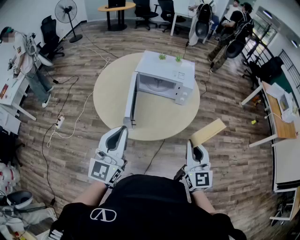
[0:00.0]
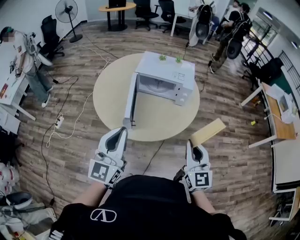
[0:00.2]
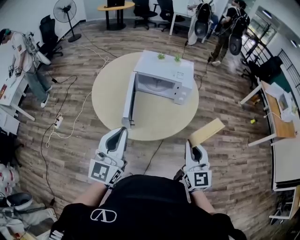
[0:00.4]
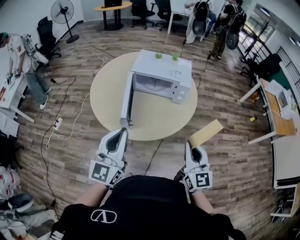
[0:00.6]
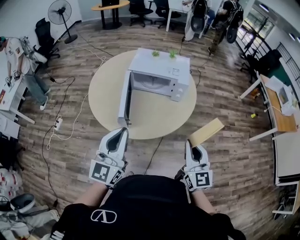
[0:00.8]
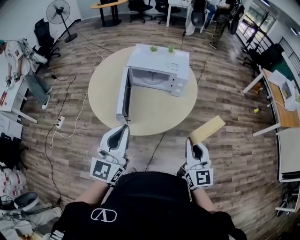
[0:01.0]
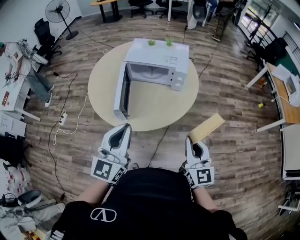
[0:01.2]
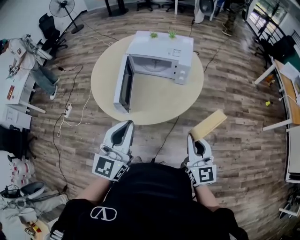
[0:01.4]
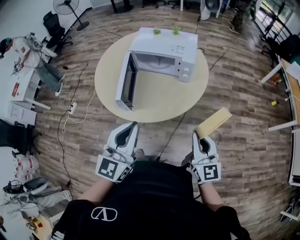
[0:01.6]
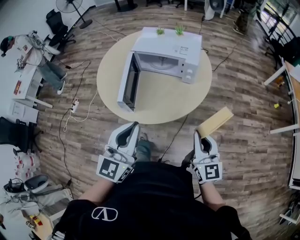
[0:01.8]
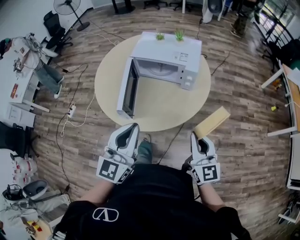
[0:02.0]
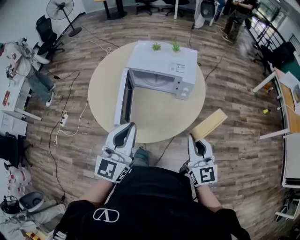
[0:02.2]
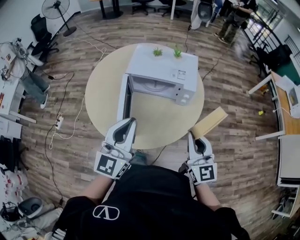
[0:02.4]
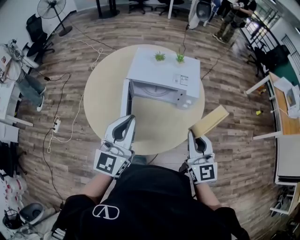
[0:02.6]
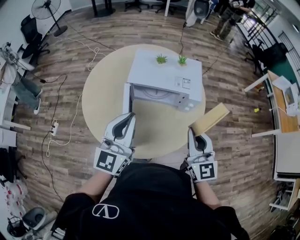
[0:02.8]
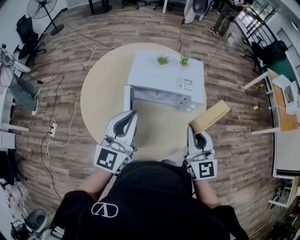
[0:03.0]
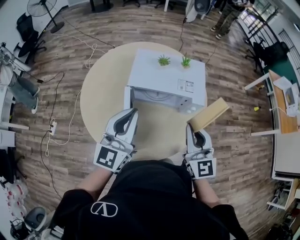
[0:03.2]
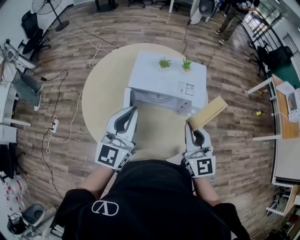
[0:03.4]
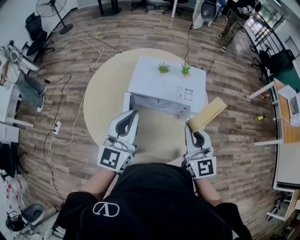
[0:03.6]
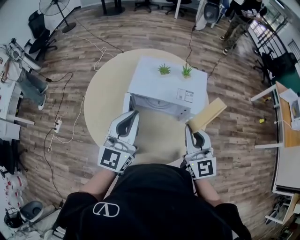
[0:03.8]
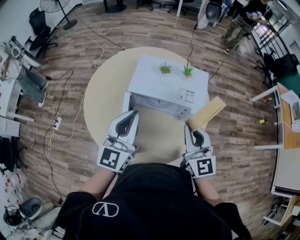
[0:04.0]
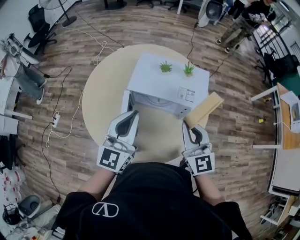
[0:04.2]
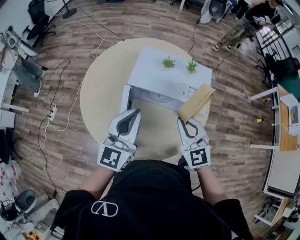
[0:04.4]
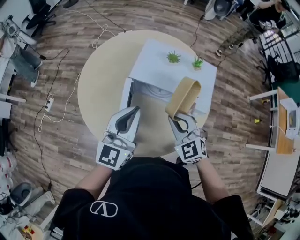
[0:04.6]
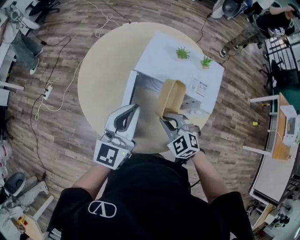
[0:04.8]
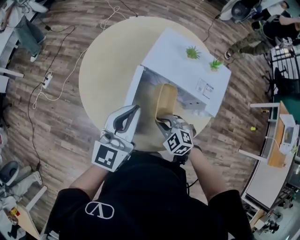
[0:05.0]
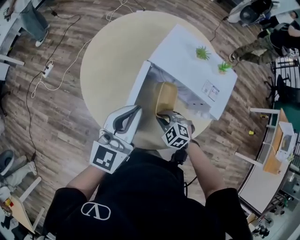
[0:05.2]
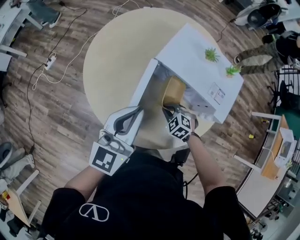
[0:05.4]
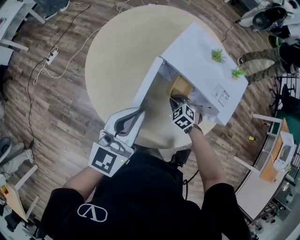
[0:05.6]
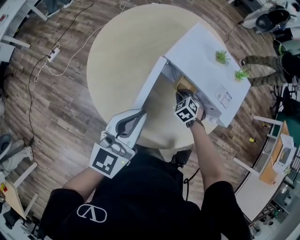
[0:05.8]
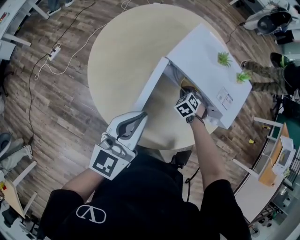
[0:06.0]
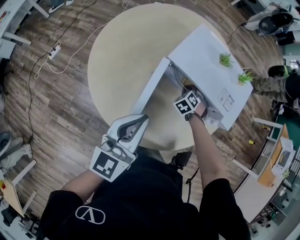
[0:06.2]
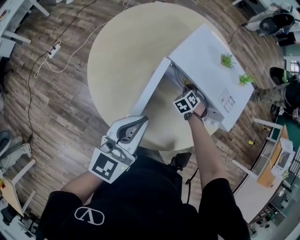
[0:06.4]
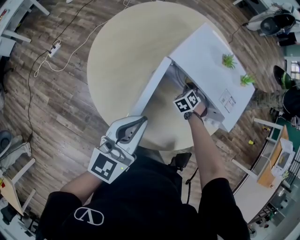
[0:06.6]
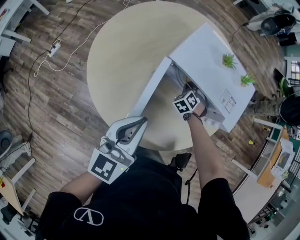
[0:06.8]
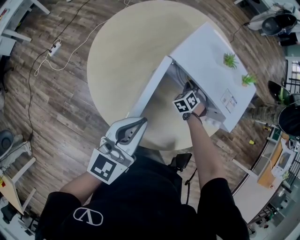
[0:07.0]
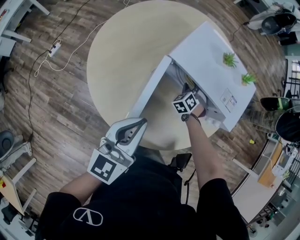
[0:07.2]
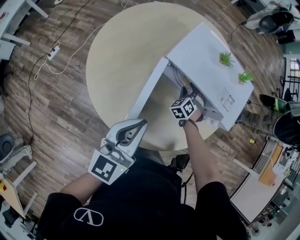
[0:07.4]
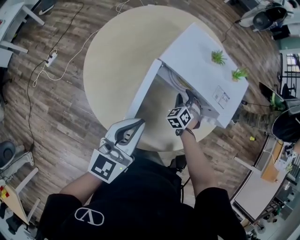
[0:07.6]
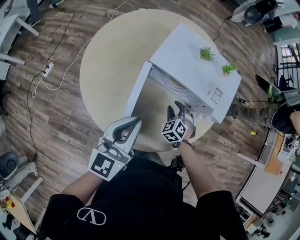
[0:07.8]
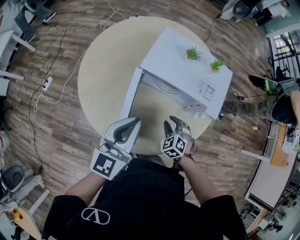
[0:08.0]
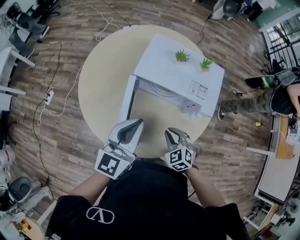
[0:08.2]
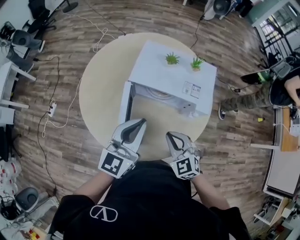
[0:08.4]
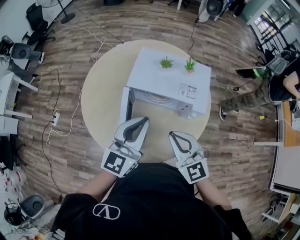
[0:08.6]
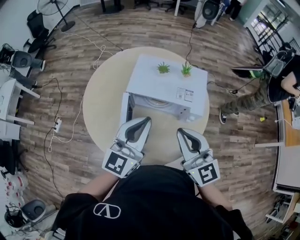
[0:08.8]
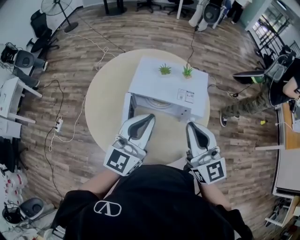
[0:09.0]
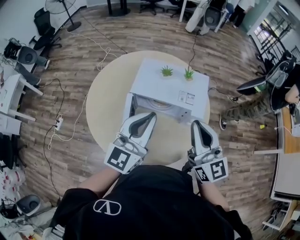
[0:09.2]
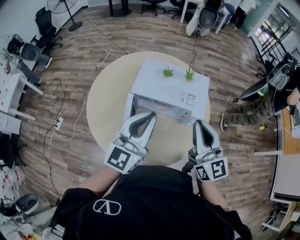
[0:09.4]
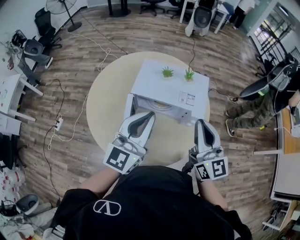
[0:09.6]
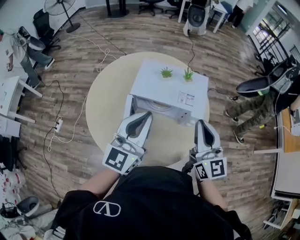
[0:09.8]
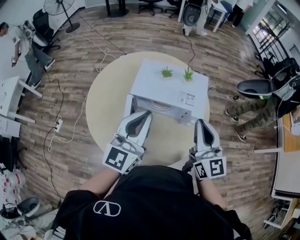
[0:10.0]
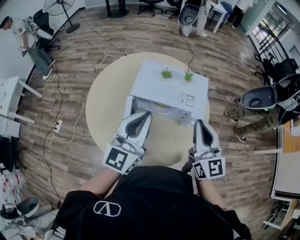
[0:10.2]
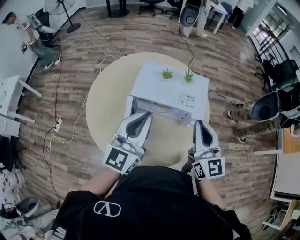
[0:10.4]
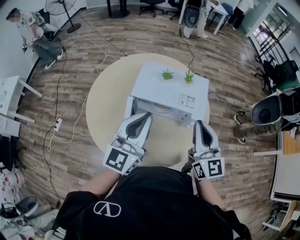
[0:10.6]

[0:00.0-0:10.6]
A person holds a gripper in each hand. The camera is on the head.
0:00.0 to 0:01.6: The right gripper is displaced to the right and downward by roughly 10 cm; the left gripper goes roughly 15 cm to the right.
0:01.6 to 0:03.0: Both grippers travel together forward and to the left, some 30 cm.
0:03.0 to 0:04.6: The left gripper shifts by about 5 cm. The right gripper travels downward and forward by some 15 cm, and swivels some 50 degrees.
0:04.6 to 0:06.0: The right gripper is displaced downward by about 25 cm, and tips its fingers downward by approximately 40 degrees. The left gripper is displaced downward by approximately 10 cm.
0:06.0 to 0:07.6: The right gripper opens.
0:07.6 to 0:09.0: The left gripper moves upward and to the right, about 20 cm, and turns by approximately 20 degrees. The right gripper moves upward and backward, about 40 cm, tilts its fingers roughly 50 degrees upward, and closes up.
0:09.0 to 0:10.6: There are only small adjustments of the grippers.

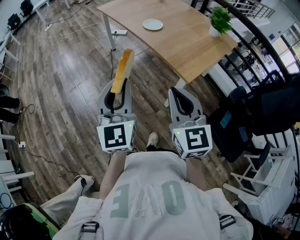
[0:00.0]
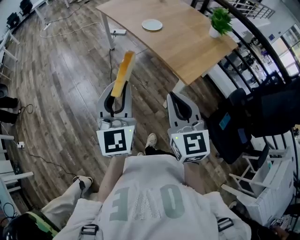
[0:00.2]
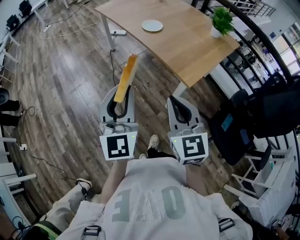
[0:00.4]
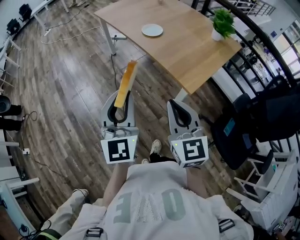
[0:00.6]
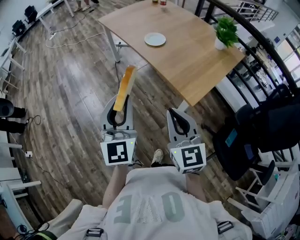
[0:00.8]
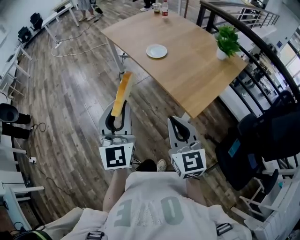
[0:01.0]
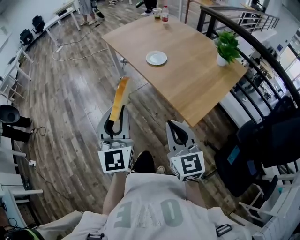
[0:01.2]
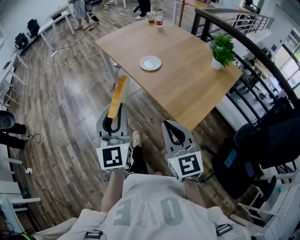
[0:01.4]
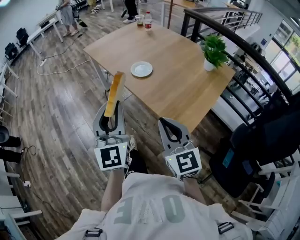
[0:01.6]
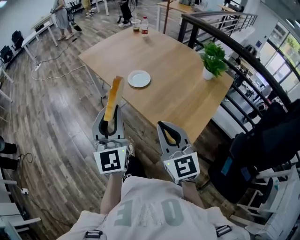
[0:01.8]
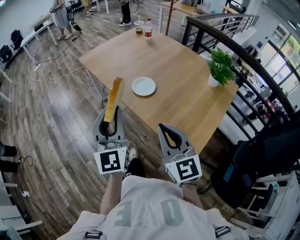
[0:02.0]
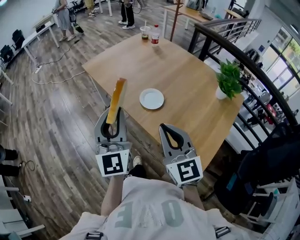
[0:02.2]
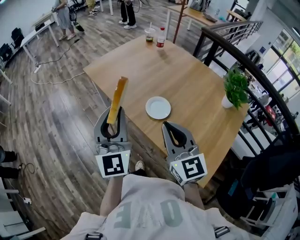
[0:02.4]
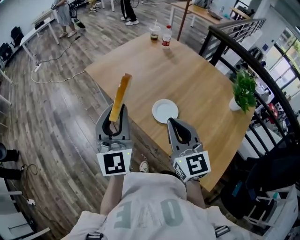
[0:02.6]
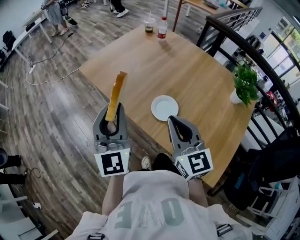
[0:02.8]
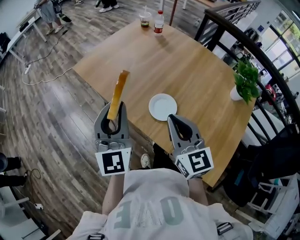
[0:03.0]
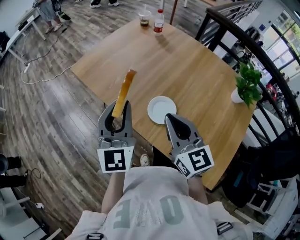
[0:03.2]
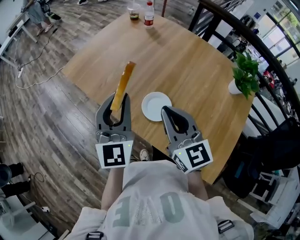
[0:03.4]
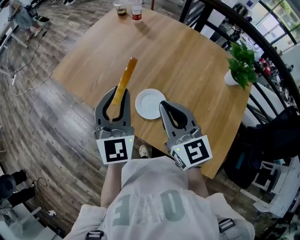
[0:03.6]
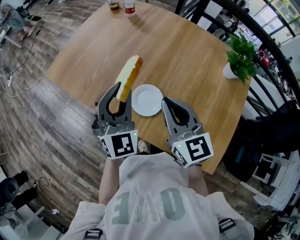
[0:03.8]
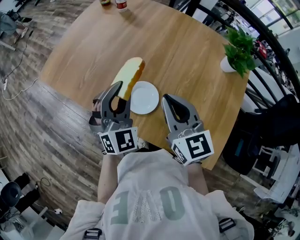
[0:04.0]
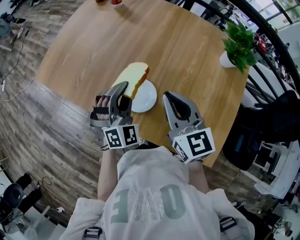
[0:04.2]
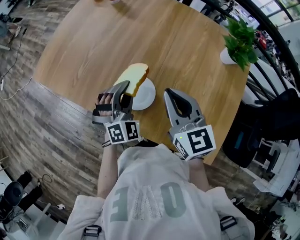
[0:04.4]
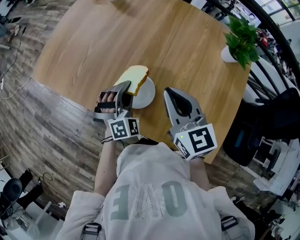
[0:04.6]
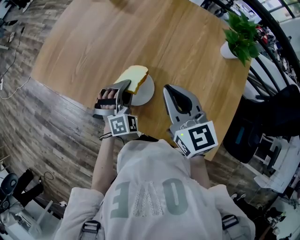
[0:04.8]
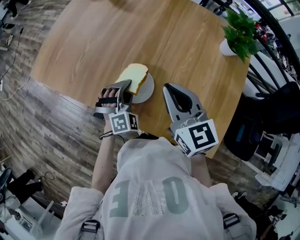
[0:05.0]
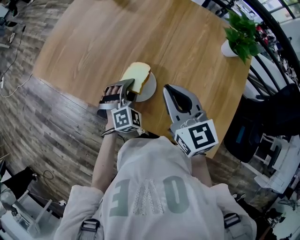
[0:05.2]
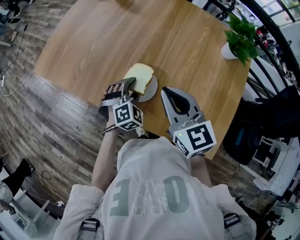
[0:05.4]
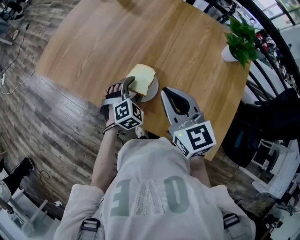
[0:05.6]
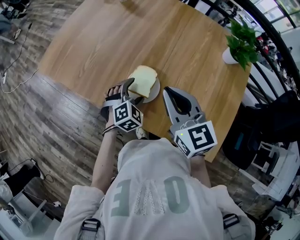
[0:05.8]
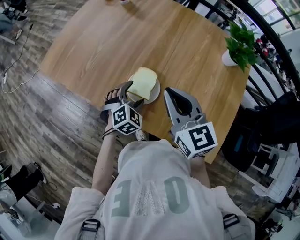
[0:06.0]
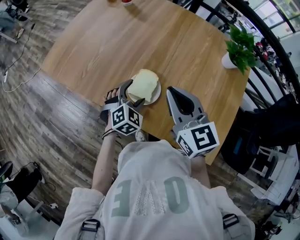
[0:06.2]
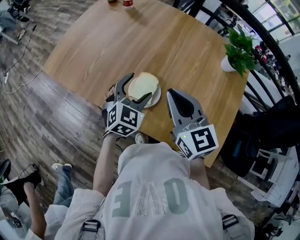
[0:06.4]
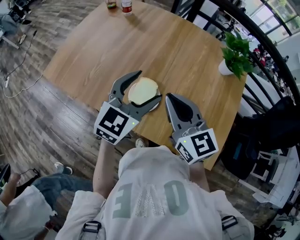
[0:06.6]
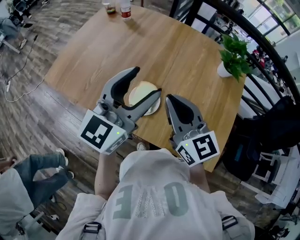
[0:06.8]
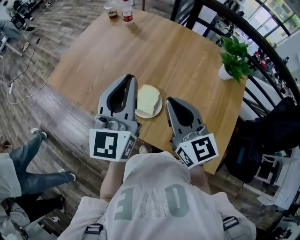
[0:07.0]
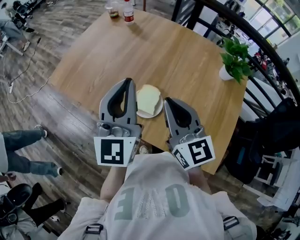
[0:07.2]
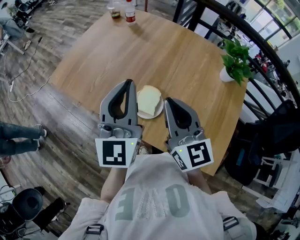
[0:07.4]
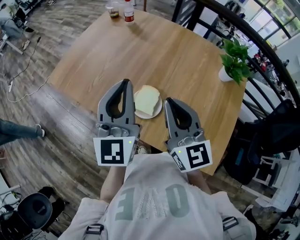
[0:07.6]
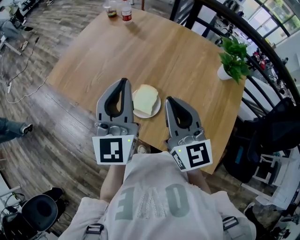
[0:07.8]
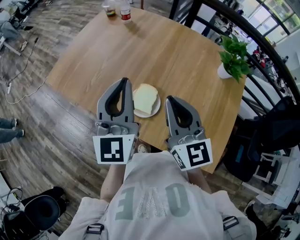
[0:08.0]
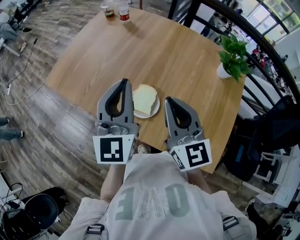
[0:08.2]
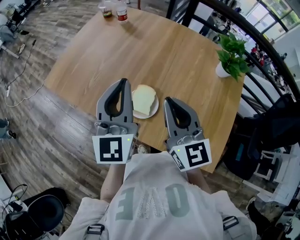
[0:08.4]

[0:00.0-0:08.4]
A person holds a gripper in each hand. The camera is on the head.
0:00.0 to 0:01.4: The grippers both shift forward by some 15 cm.
0:01.4 to 0:02.8: The grippers both shift forward by approximately 40 cm.
0:02.8 to 0:04.2: The right gripper travels to the right, forward and downward by roughly 15 cm; the left gripper is displaced to the right, downward and forward by approximately 30 cm, and changes its angle by some 60 degrees.
0:04.2 to 0:05.6: The left gripper is displaced downward by some 15 cm, turns by some 30 degrees, and opens up.
0:05.6 to 0:07.0: The right gripper goes roughly 5 cm upward. Meanwhile the left gripper goes approximately 30 cm upward, tips its fingers upward by some 60 degrees, and closes its fingers.
0:07.0 to 0:08.4: The grippers stay close to where they were, moving slightly.

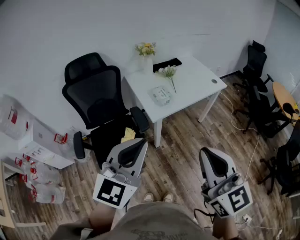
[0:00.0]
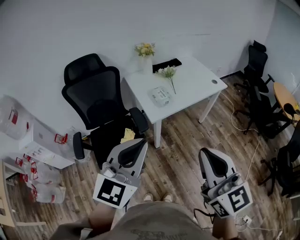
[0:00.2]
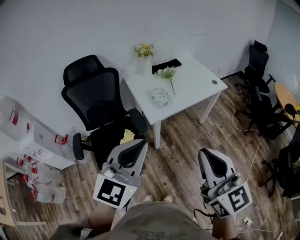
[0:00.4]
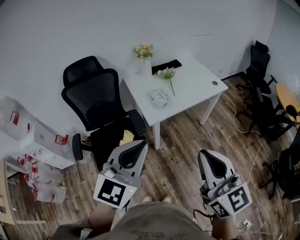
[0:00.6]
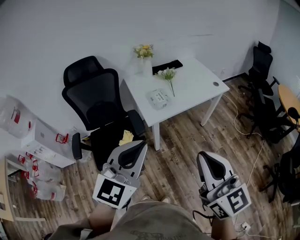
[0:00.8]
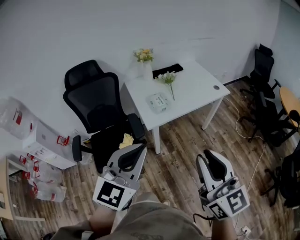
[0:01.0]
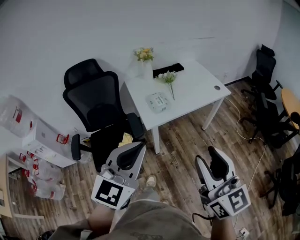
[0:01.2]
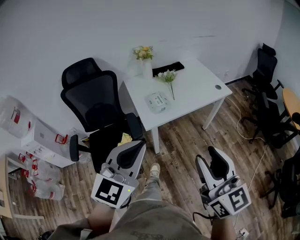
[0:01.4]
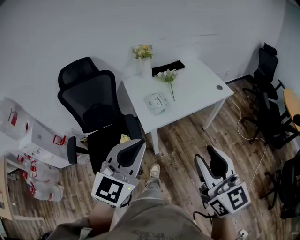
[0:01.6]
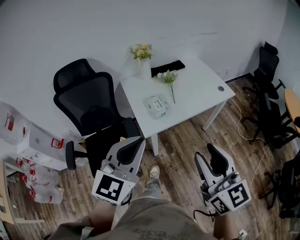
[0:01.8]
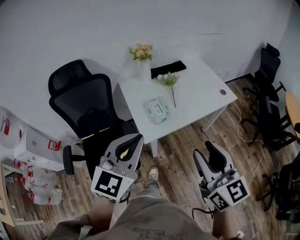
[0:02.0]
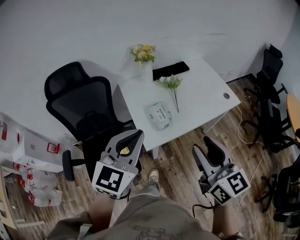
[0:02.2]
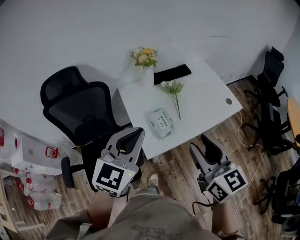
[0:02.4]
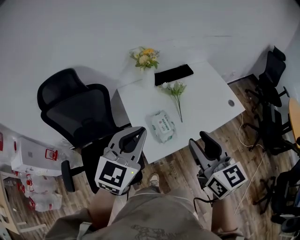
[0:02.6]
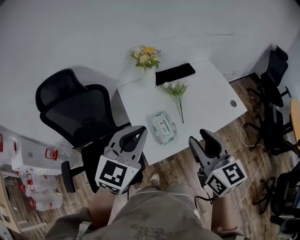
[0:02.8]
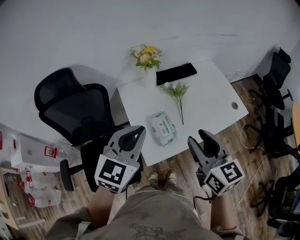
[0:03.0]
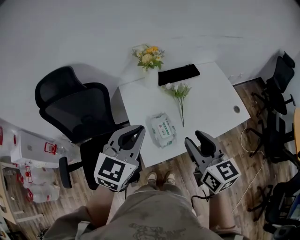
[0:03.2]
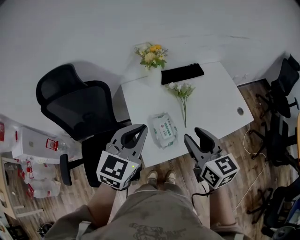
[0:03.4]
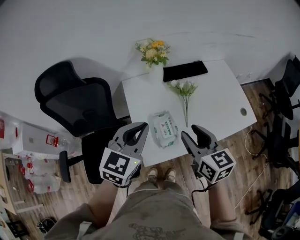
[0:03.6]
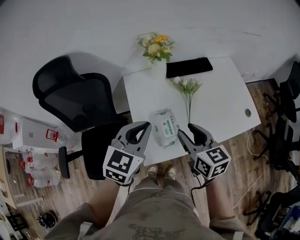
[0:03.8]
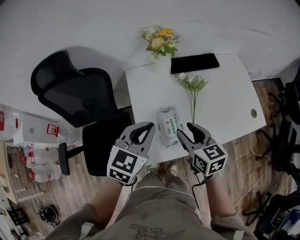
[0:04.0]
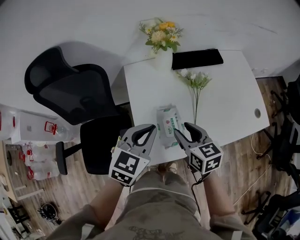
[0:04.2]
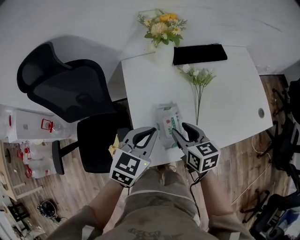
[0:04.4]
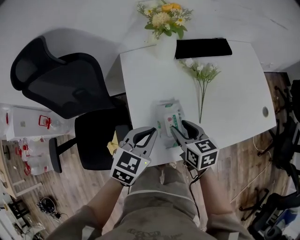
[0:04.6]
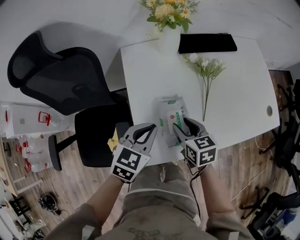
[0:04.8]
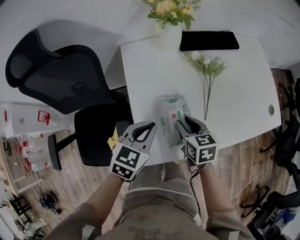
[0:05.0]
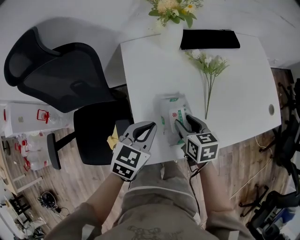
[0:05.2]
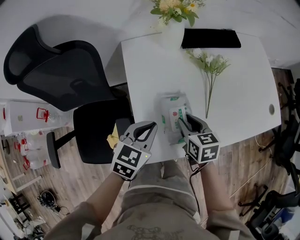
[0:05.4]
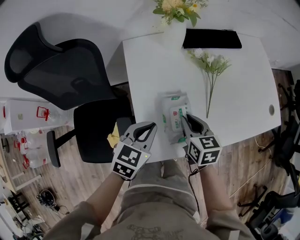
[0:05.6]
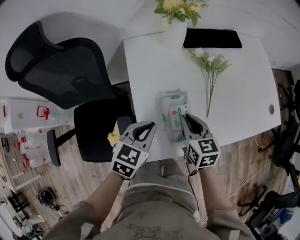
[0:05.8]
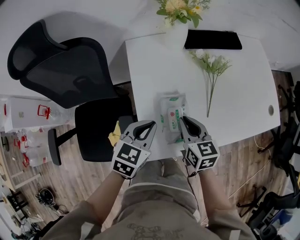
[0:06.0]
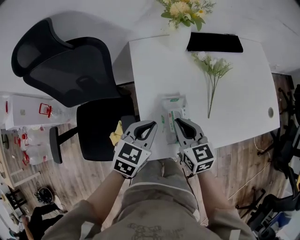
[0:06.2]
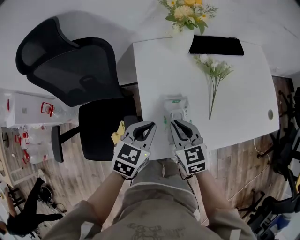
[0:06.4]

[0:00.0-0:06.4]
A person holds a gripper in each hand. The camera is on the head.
0:00.0 to 0:01.6: The left gripper goes approximately 15 cm forward and to the right. Meanwhile the right gripper heads forward, to the right and downward, covering about 15 cm, and opens.
0:01.6 to 0:03.2: Both grippers travel together forward, roughly 35 cm.
0:03.2 to 0:04.8: Both grippers travel together downward, about 25 cm. The left gripper rotates about 30 degrees, while the right gripper changes its angle by roughly 30 degrees.
0:04.8 to 0:06.4: The right gripper travels to the left by some 5 cm, swivels about 20 degrees, and closes its fingers.
